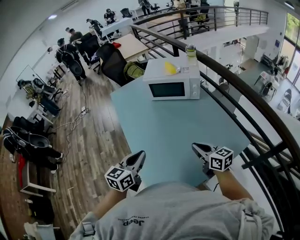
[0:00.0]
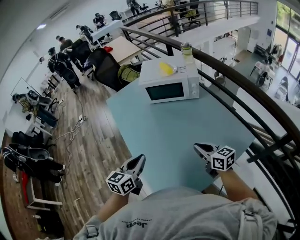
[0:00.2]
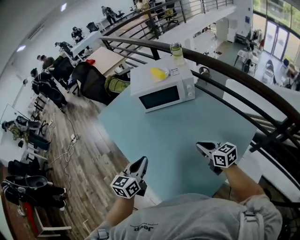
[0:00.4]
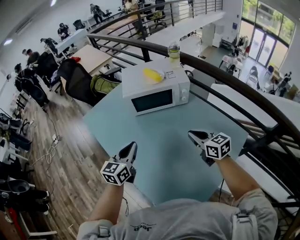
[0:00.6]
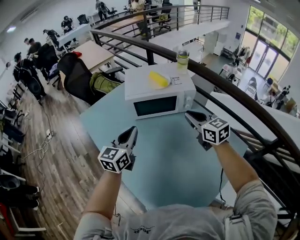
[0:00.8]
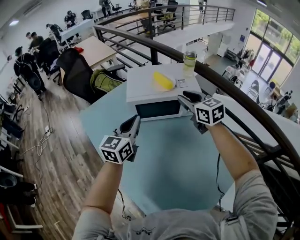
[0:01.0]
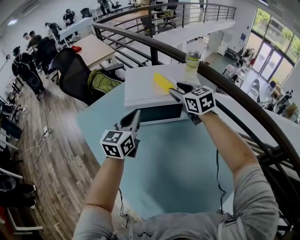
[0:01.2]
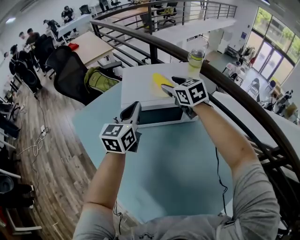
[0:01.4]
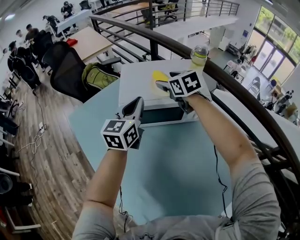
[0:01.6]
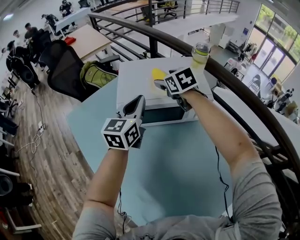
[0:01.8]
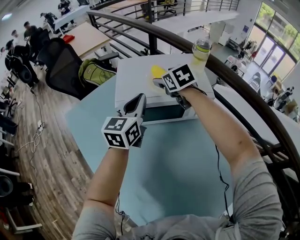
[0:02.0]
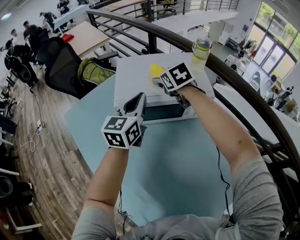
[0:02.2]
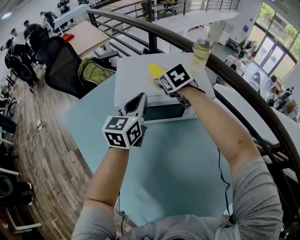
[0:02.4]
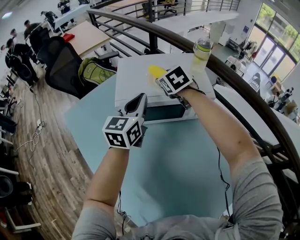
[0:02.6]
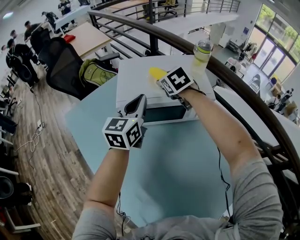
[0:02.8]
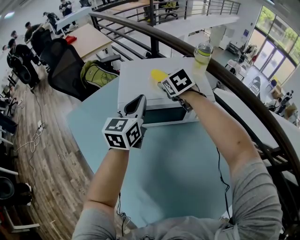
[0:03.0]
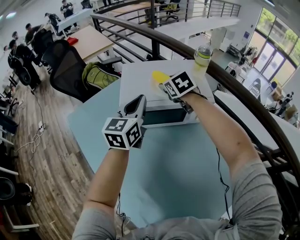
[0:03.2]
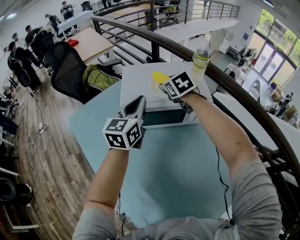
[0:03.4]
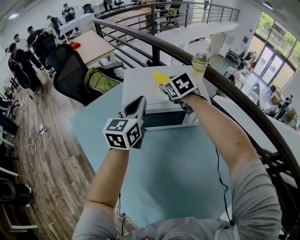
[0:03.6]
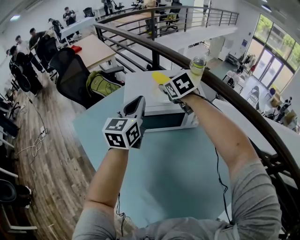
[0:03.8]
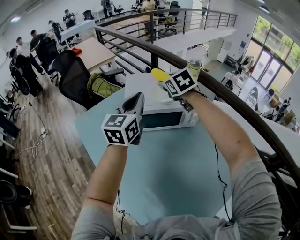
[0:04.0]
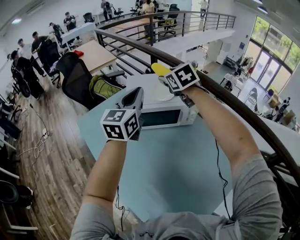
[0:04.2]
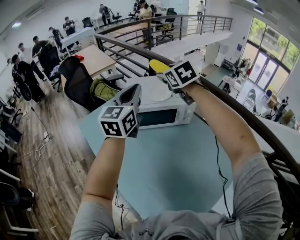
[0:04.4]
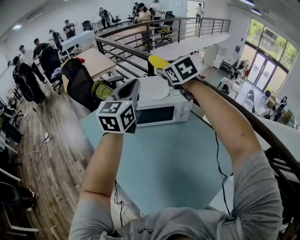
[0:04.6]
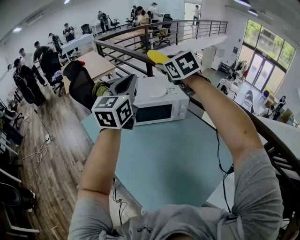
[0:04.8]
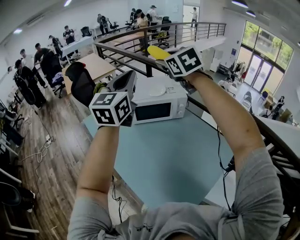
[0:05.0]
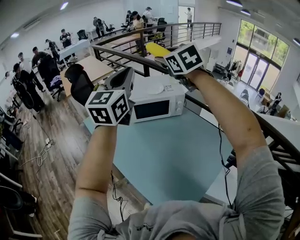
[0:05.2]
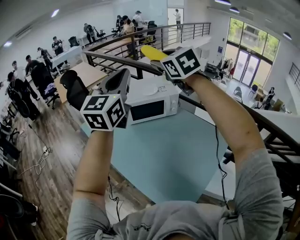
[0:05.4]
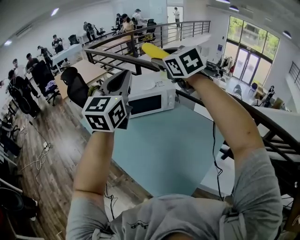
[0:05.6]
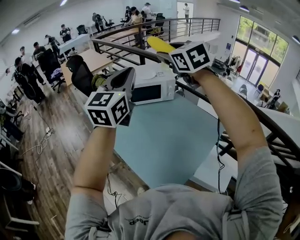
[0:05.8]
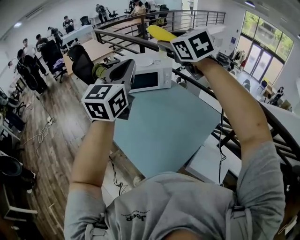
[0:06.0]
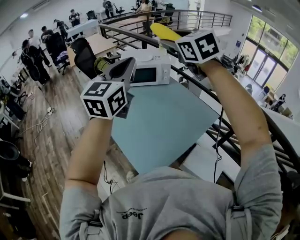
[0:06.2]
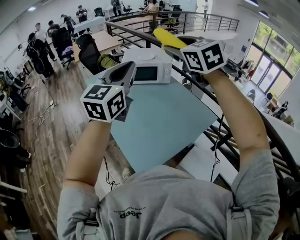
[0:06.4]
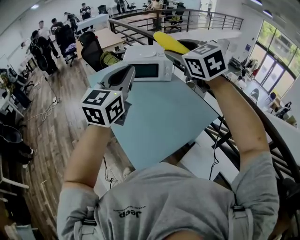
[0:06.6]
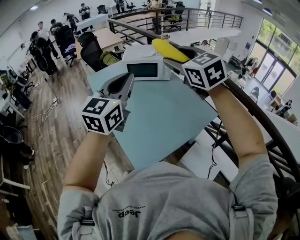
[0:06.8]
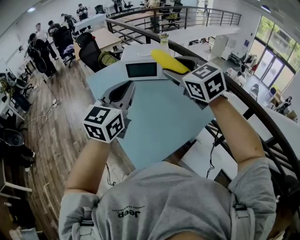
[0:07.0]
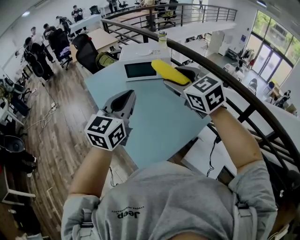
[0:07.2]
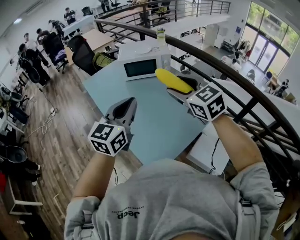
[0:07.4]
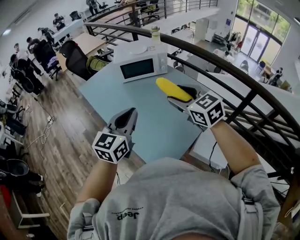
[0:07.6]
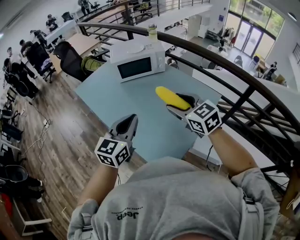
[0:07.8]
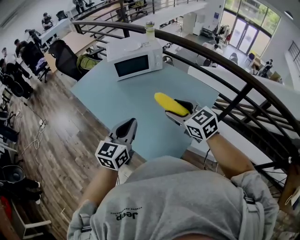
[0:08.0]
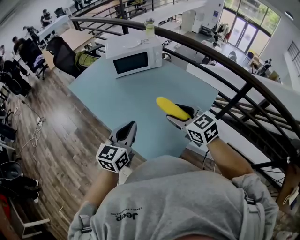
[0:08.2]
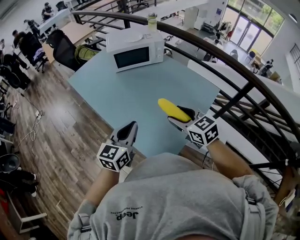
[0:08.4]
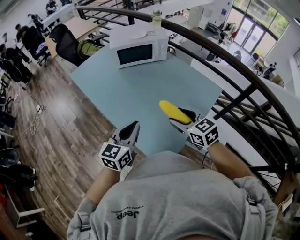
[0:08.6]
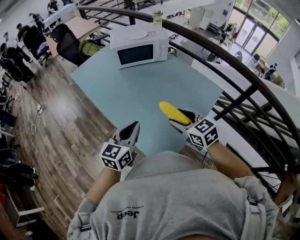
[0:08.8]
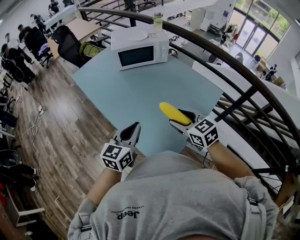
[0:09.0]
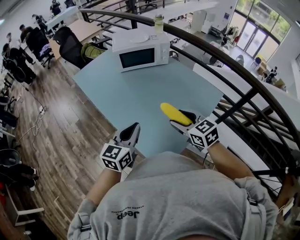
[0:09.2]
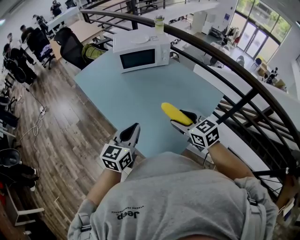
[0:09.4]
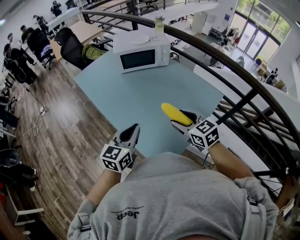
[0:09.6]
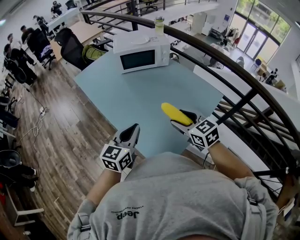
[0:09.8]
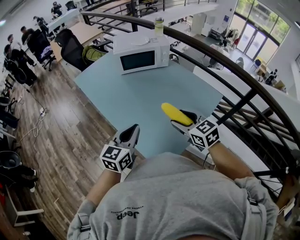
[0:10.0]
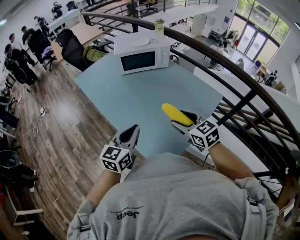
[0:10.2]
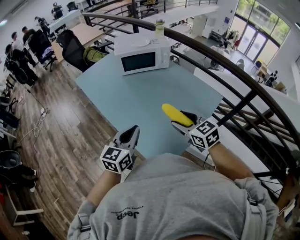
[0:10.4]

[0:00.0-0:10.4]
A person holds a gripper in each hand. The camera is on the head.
0:00.0 to 0:01.4: Both grippers are carried forward, roughly 50 cm. The right gripper changes its angle by roughly 40 degrees, and opens.
0:01.4 to 0:03.0: The left gripper changes place by approximately 5 cm. Meanwhile the right gripper travels forward and downward by approximately 10 cm.
0:03.0 to 0:04.4: The two grippers go about 25 cm upward and backward.
0:04.4 to 0:06.0: The right gripper travels backward and upward by roughly 40 cm, while the left gripper heads backward, covering some 35 cm.
0:06.0 to 0:07.4: Both grippers move downward and backward, roughly 20 cm.
0:07.4 to 0:09.0: The grippers both shift downward by roughly 15 cm.
0:09.0 to 0:10.4: The grippers stay close to where they were, moving slightly.

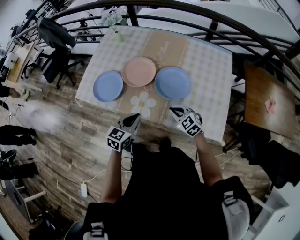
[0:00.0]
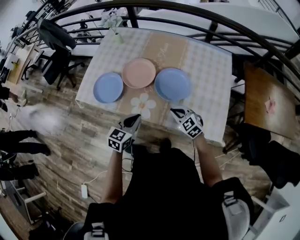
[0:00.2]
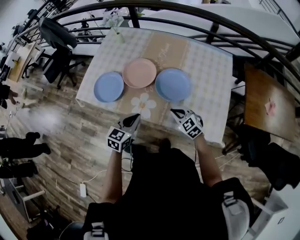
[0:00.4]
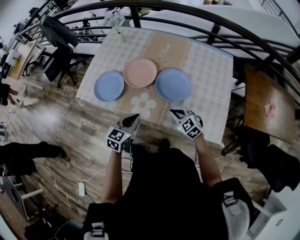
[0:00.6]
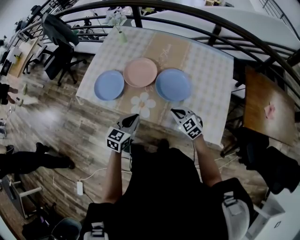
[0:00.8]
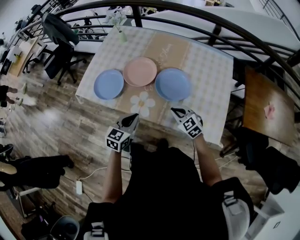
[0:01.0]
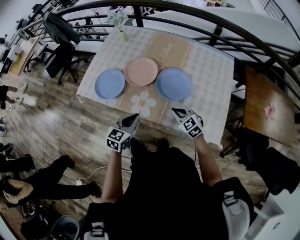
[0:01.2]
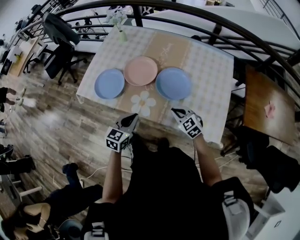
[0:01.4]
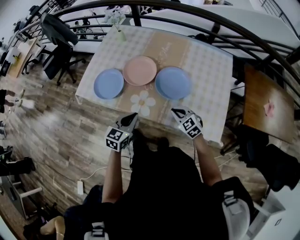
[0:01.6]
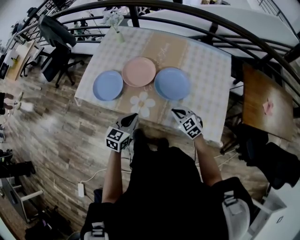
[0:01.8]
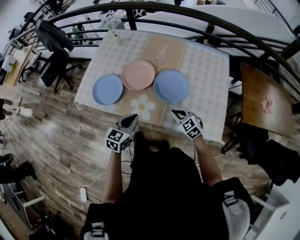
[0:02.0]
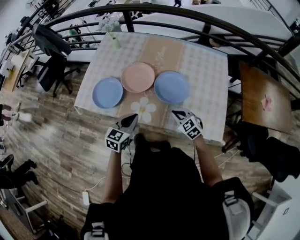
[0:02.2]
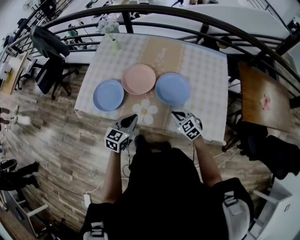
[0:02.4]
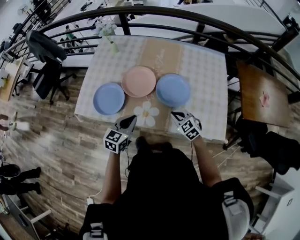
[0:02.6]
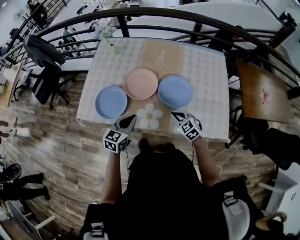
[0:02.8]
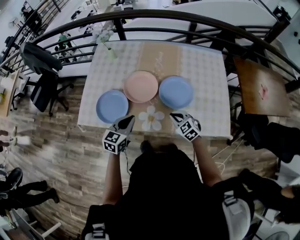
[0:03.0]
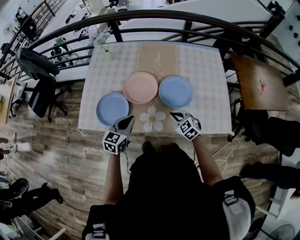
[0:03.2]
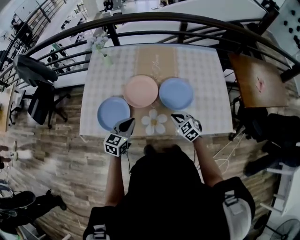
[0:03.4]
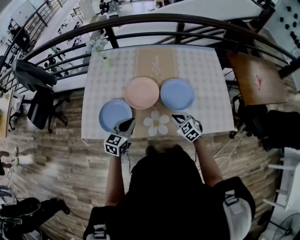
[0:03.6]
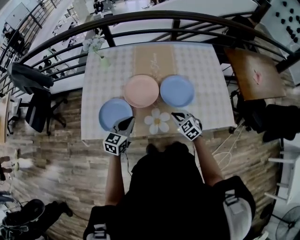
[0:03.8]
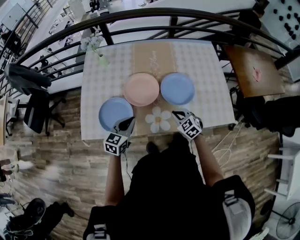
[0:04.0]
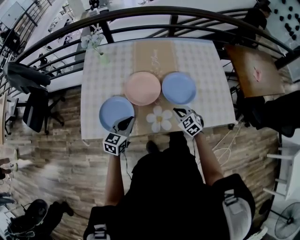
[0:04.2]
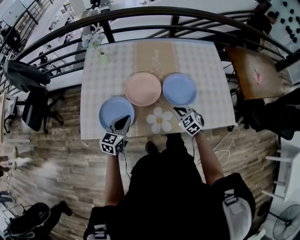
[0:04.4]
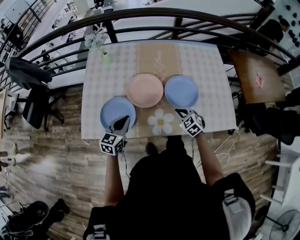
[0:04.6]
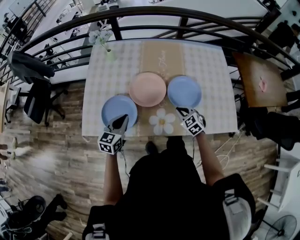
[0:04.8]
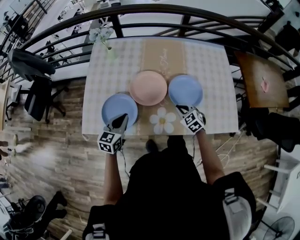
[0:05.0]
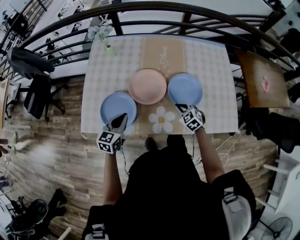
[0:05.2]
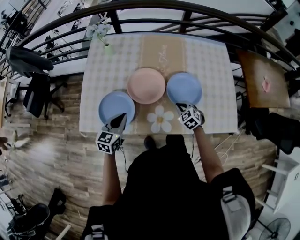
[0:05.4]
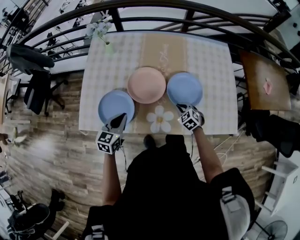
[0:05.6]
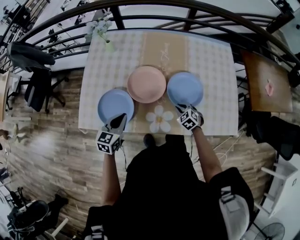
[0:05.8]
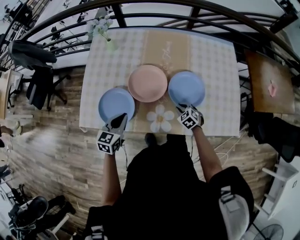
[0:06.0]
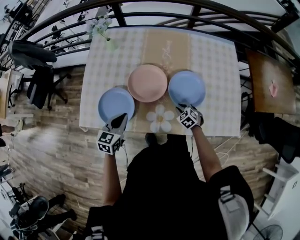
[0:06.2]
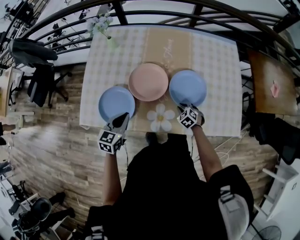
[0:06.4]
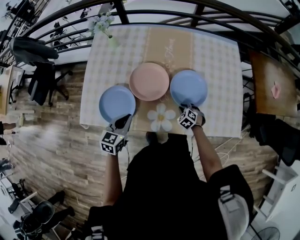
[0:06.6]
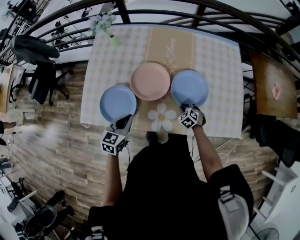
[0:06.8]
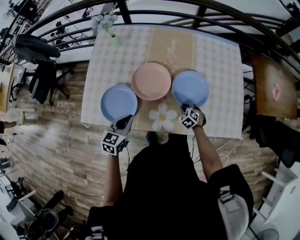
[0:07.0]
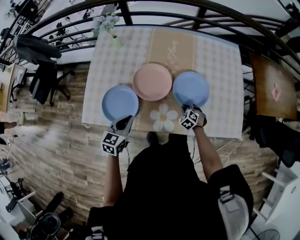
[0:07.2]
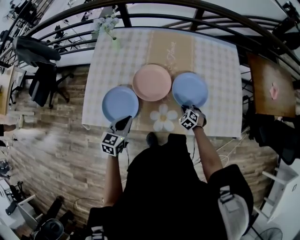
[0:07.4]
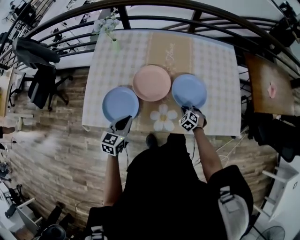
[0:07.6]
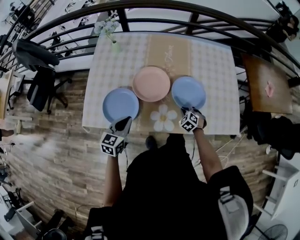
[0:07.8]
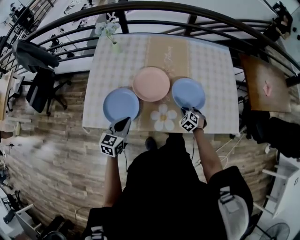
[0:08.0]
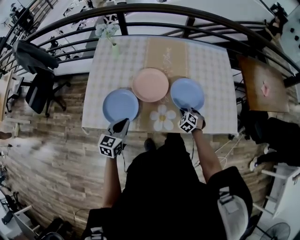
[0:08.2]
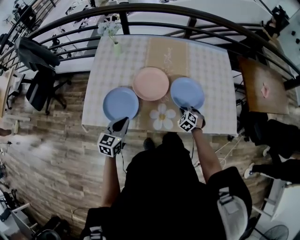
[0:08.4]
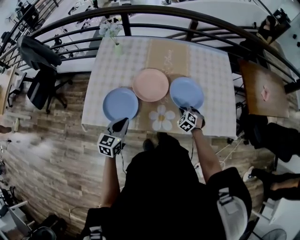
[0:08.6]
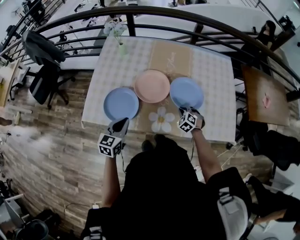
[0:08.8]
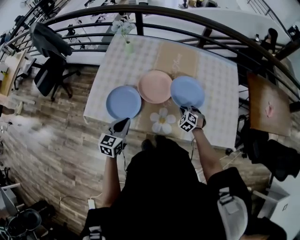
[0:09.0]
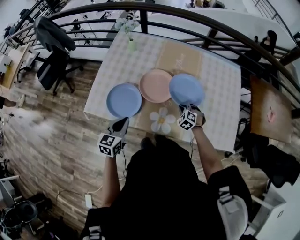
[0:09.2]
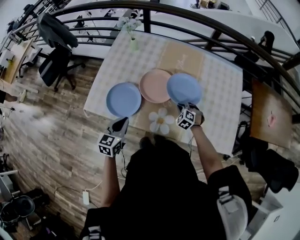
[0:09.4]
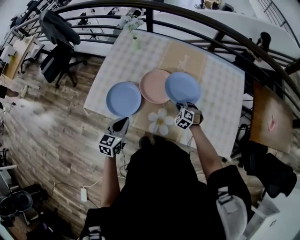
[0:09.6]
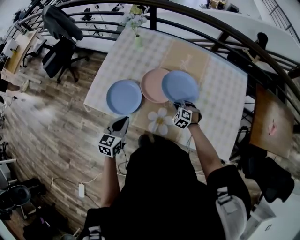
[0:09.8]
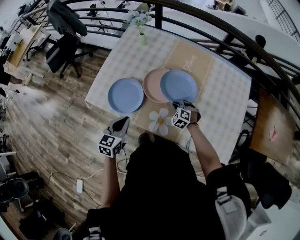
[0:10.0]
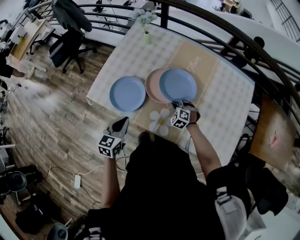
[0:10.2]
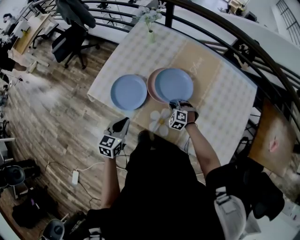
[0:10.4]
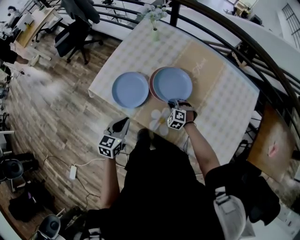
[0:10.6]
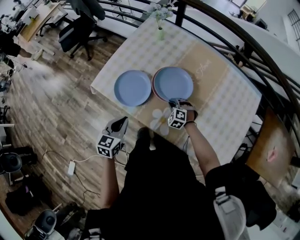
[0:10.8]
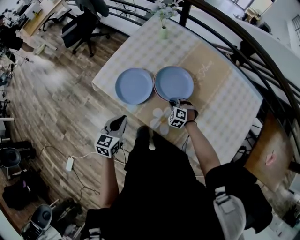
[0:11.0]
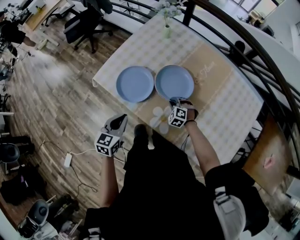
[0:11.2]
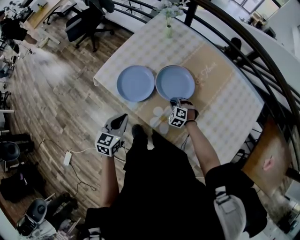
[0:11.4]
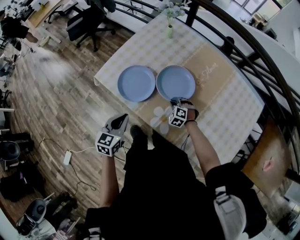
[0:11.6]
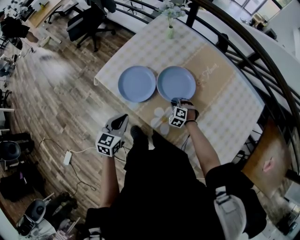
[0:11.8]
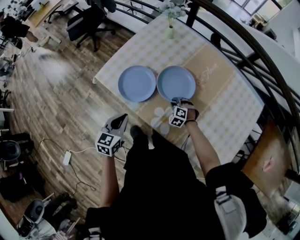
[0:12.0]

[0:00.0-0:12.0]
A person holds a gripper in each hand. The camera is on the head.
0:00.0 to 0:01.6: The grippers move only a little.
0:01.6 to 0:03.0: The left gripper travels to the left and forward by about 15 cm. Meanwhile the right gripper shifts some 10 cm to the left.
0:03.0 to 0:04.4: The right gripper changes place by approximately 5 cm. Meanwhile the left gripper travels to the left by about 10 cm.
0:04.4 to 0:06.0: The right gripper is displaced downward by approximately 10 cm.
0:06.0 to 0:07.6: The grippers stay close to where they were, moving slightly.
0:07.6 to 0:09.0: The right gripper shifts some 5 cm upward. Meanwhile the left gripper ends up about 5 cm from where it was.
0:09.0 to 0:10.4: The right gripper shifts approximately 10 cm to the left, and rotates roughly 30 degrees.
0:10.4 to 0:12.0: The grippers stay close to where they were, moving slightly.

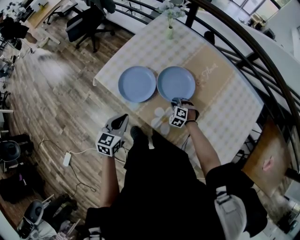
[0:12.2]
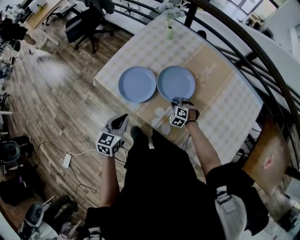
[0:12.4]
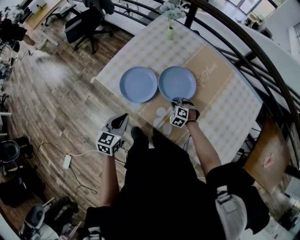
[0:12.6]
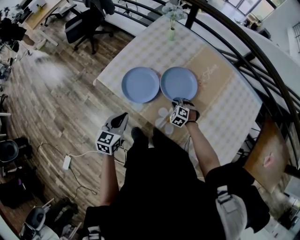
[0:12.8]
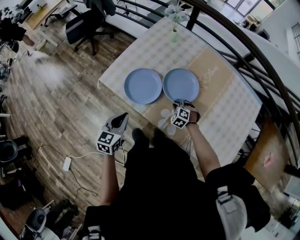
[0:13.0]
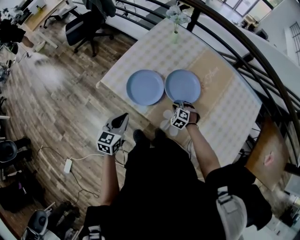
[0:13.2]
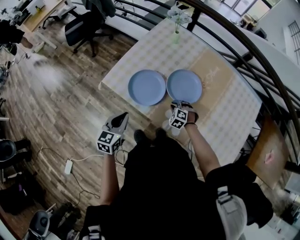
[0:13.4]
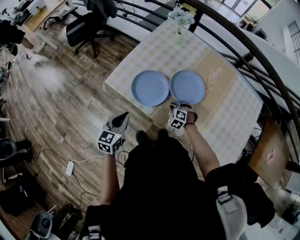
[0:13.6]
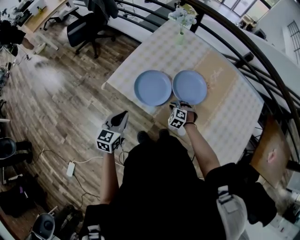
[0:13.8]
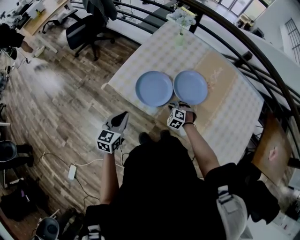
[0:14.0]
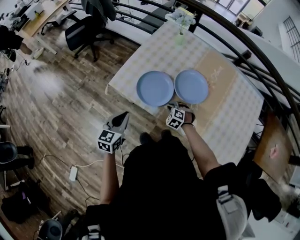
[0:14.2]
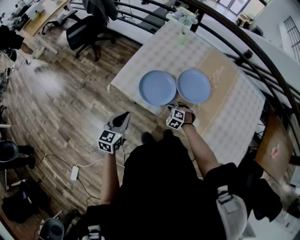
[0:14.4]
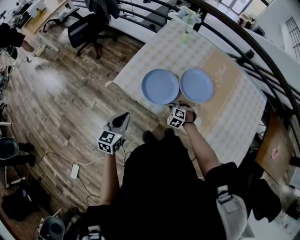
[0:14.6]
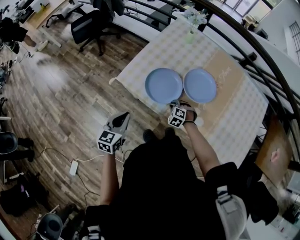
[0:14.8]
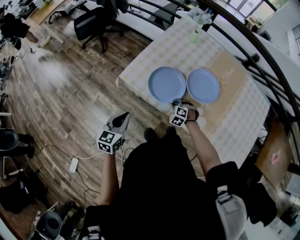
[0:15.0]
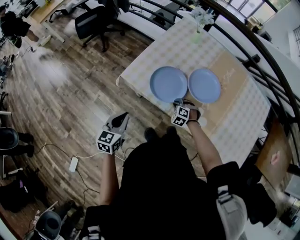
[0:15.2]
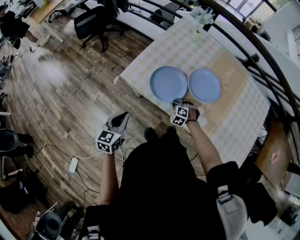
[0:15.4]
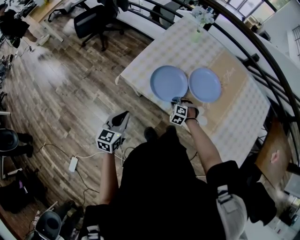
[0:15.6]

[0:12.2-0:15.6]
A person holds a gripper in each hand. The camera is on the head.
0:12.2 to 0:13.8: The two grippers go roughly 15 cm to the left.
0:13.8 to 0:15.6: The grippers both shift to the left by approximately 10 cm.